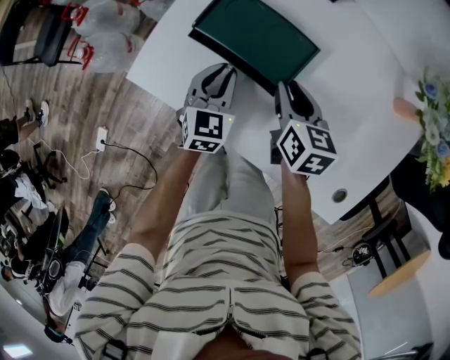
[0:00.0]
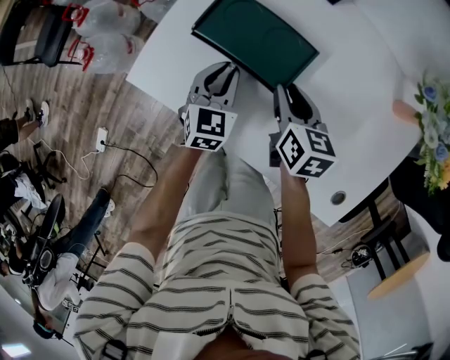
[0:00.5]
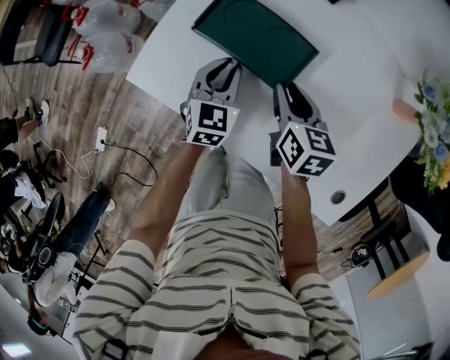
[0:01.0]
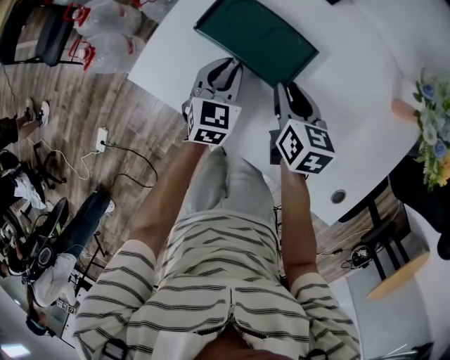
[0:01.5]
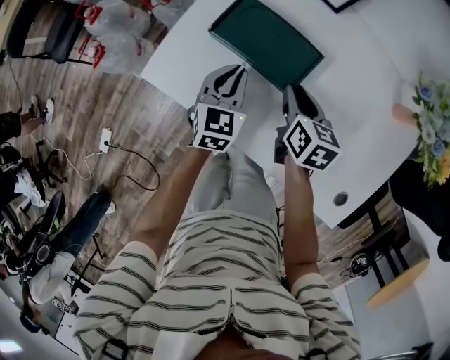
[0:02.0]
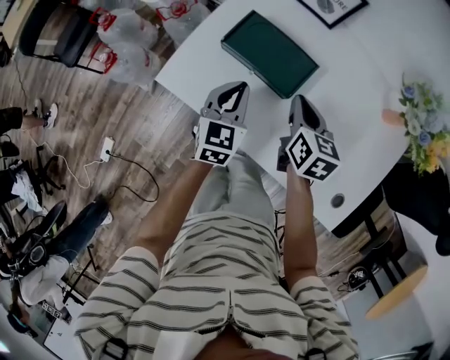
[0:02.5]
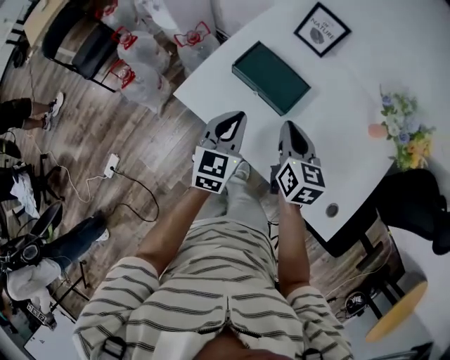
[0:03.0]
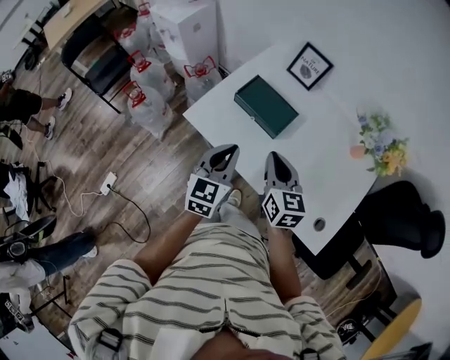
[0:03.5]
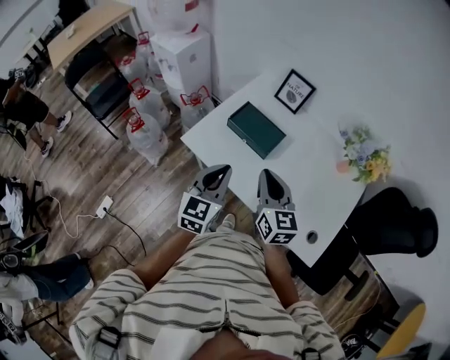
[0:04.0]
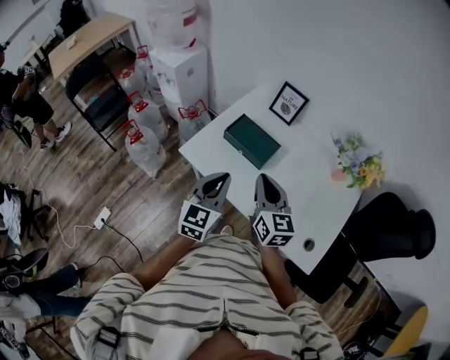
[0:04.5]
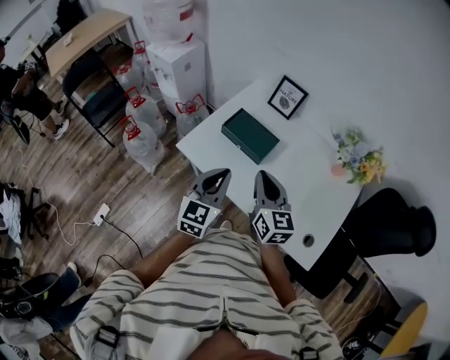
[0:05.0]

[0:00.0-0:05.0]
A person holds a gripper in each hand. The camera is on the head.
0:00.0 to 0:02.5: Both grippers travel together upward, some 5 cm. The right gripper closes.
0:02.5 to 0:05.0: Both grippers travel together upward and backward, roughly 25 cm. The right gripper swivels some 30 degrees.

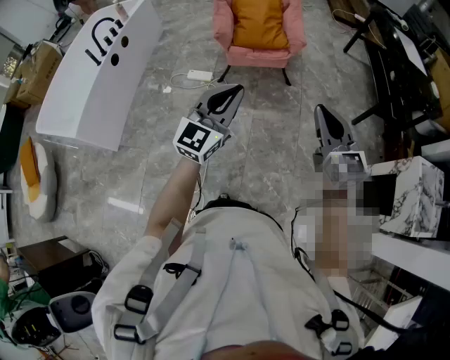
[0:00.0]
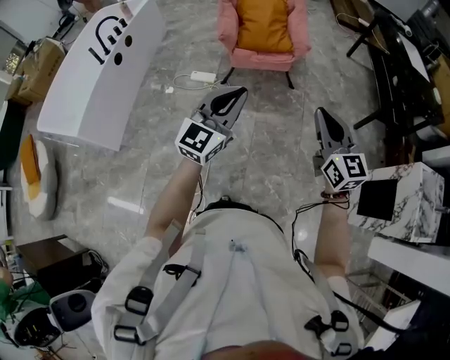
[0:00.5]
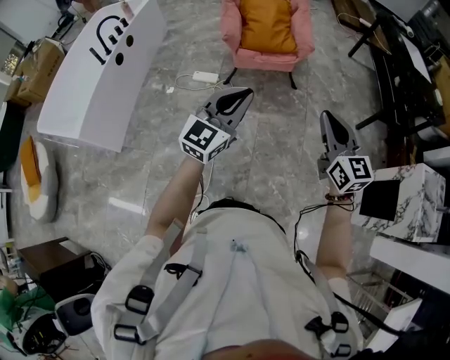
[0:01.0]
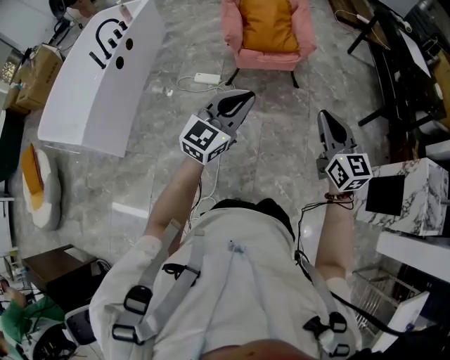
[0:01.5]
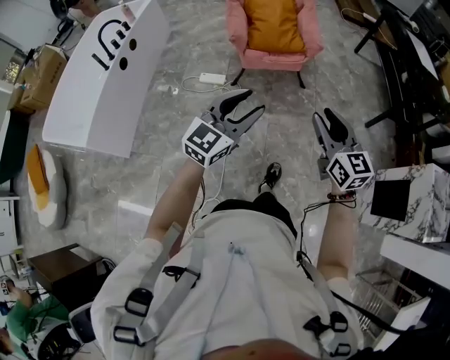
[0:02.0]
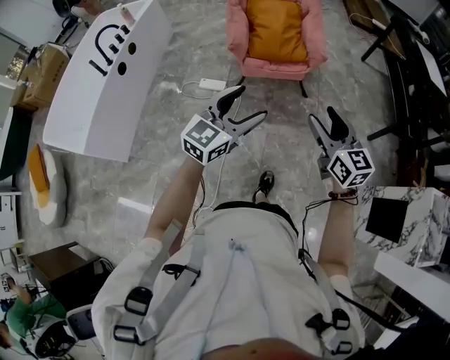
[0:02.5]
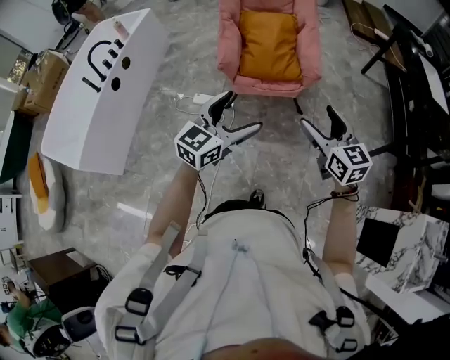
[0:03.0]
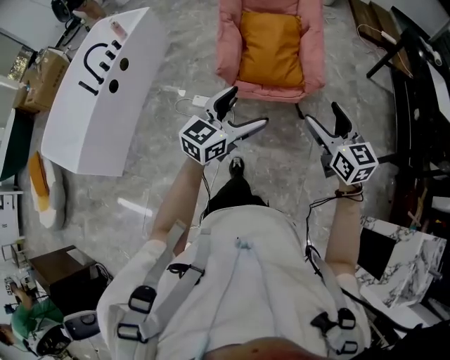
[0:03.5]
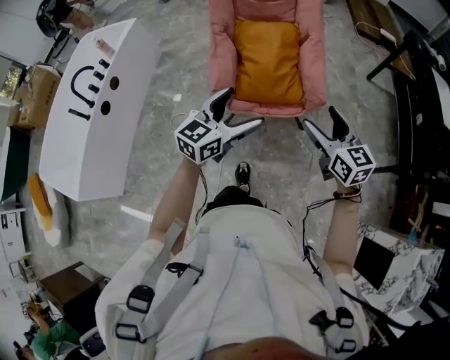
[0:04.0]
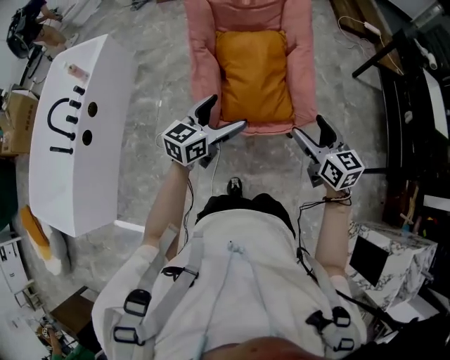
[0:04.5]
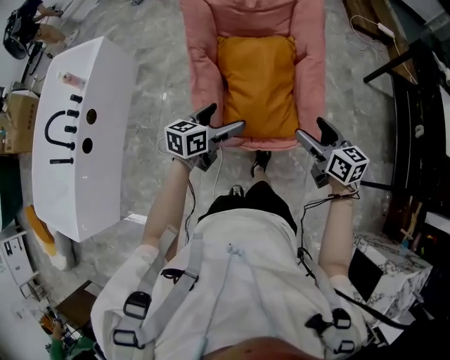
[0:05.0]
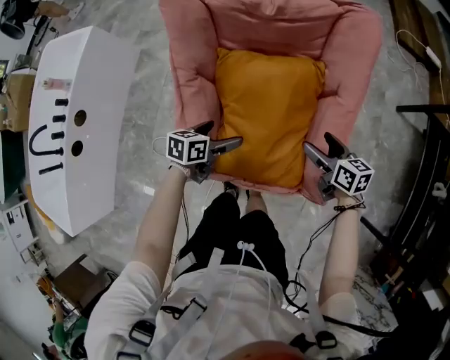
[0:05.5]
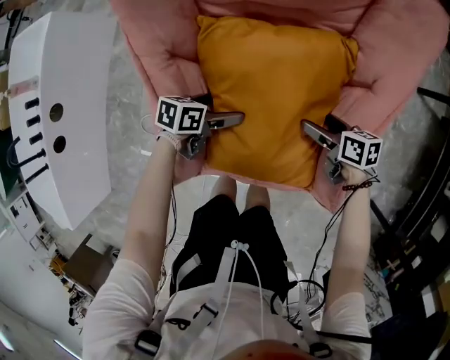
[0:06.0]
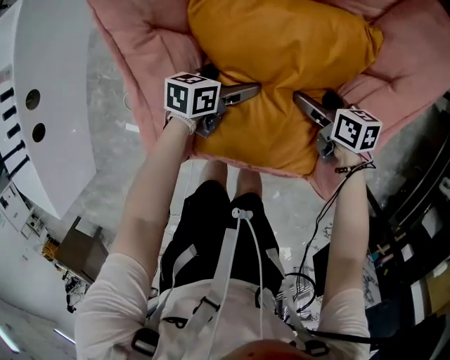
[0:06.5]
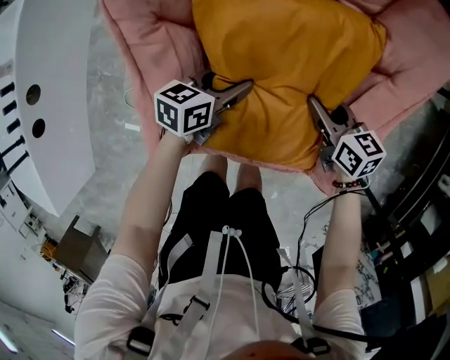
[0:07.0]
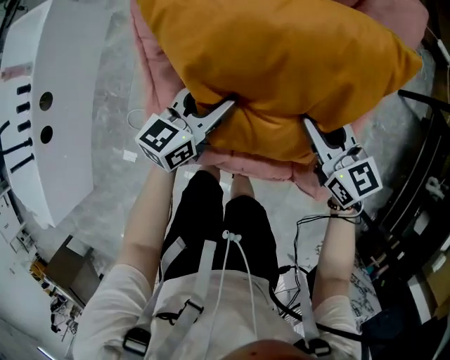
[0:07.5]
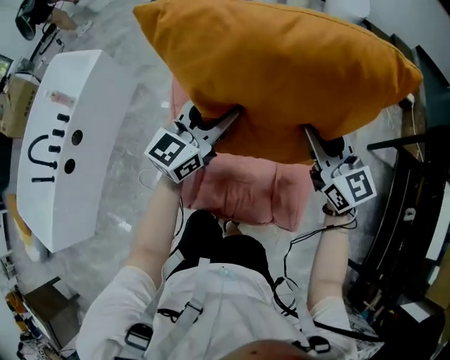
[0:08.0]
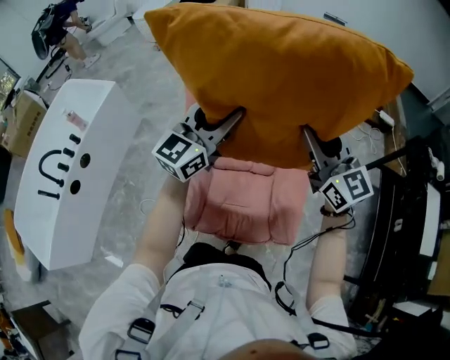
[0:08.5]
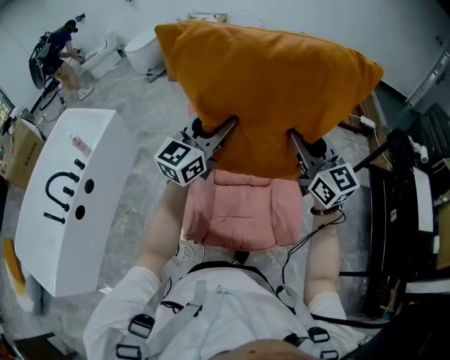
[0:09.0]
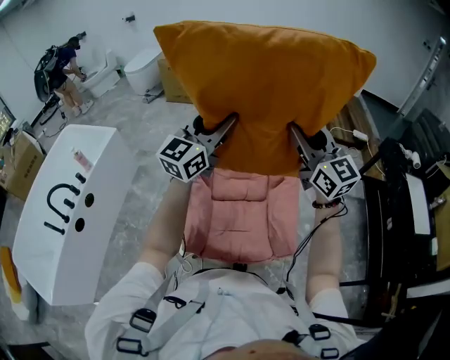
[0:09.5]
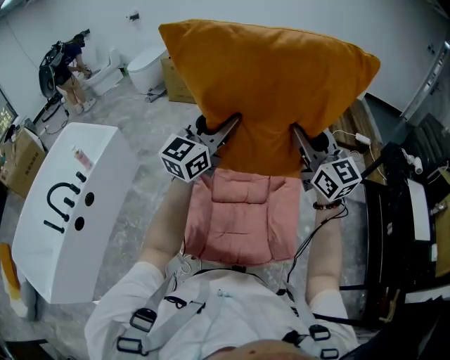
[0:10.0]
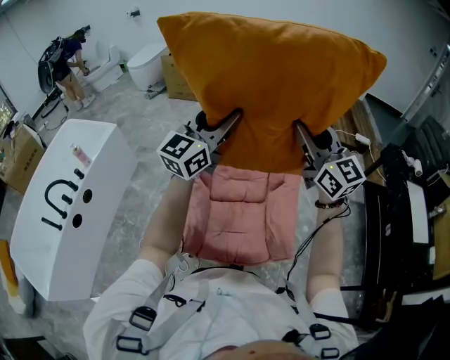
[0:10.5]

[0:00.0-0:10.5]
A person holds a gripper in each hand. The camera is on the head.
0:00.0 to 0:02.0: The grippers both shift to the left by roughly 5 cm.
0:02.0 to 0:04.0: The pair of grippers is taken forward, about 50 cm. The right gripper opens, while the left gripper opens.
0:04.0 to 0:06.5: The pair of grippers is taken some 60 cm. The left gripper tips its fingers downward by approximately 30 degrees; the right gripper turns by about 50 degrees.
0:06.5 to 0:08.5: Both grippers travel together upward, approximately 60 cm. The left gripper tilts its fingers approximately 50 degrees upward, and closes up. Meanwhile the right gripper tilts its fingers approximately 50 degrees upward, and closes its fingers.
0:08.5 to 0:10.5: Both grippers move upward and backward, approximately 15 cm.

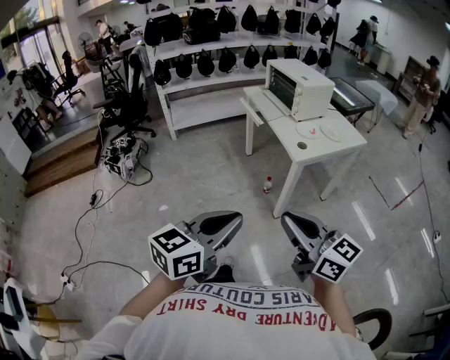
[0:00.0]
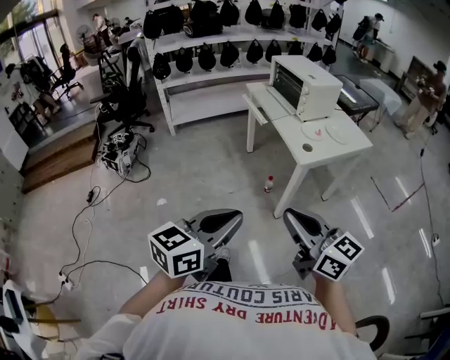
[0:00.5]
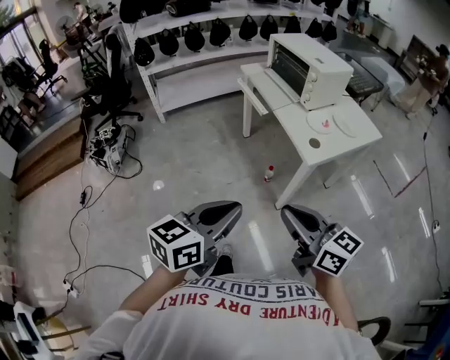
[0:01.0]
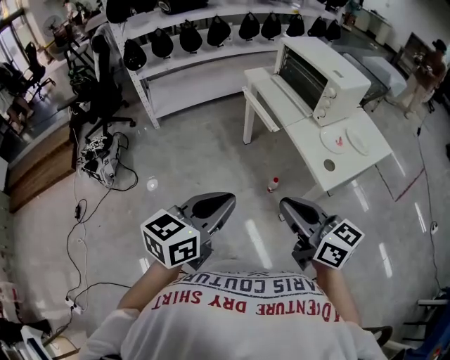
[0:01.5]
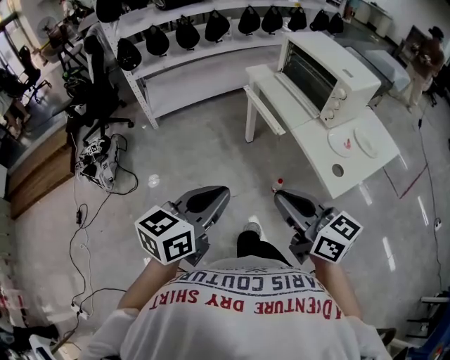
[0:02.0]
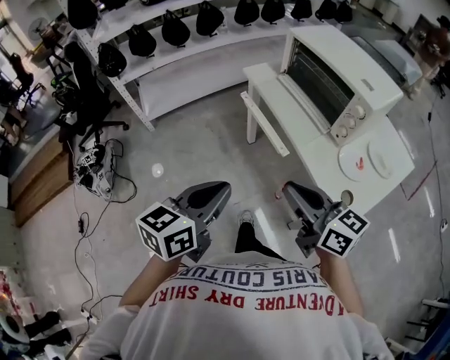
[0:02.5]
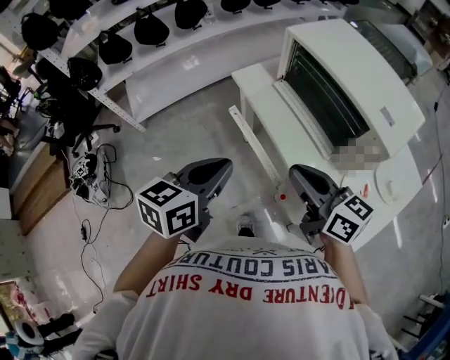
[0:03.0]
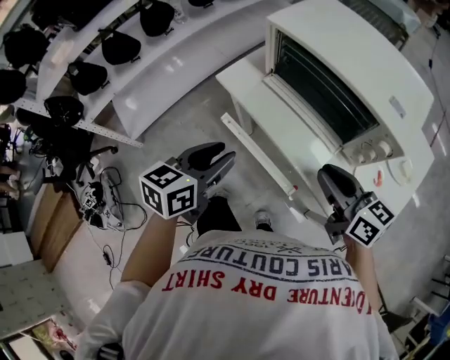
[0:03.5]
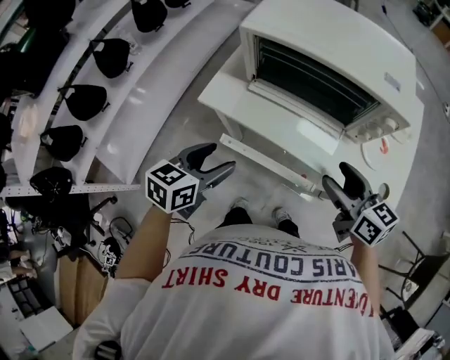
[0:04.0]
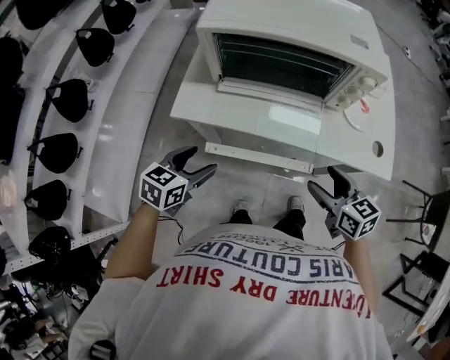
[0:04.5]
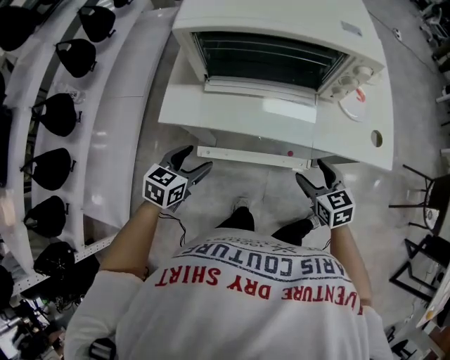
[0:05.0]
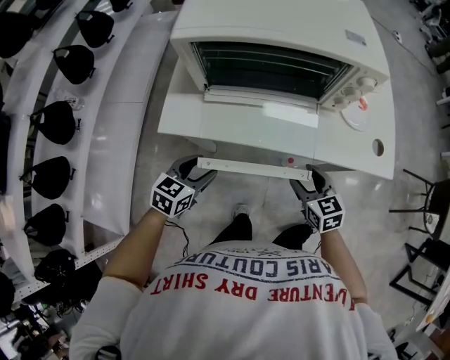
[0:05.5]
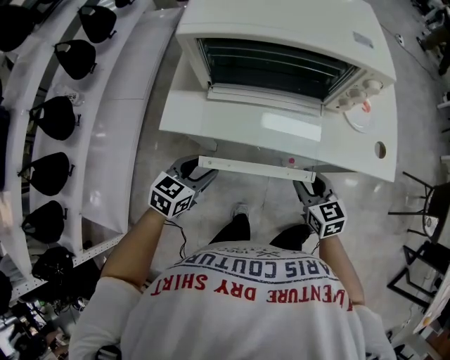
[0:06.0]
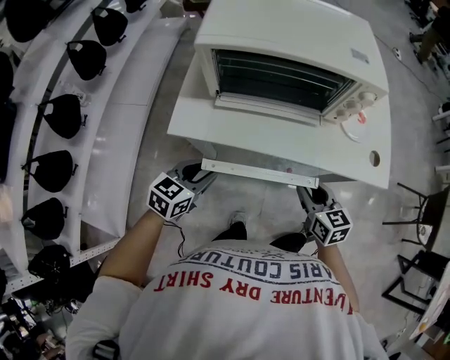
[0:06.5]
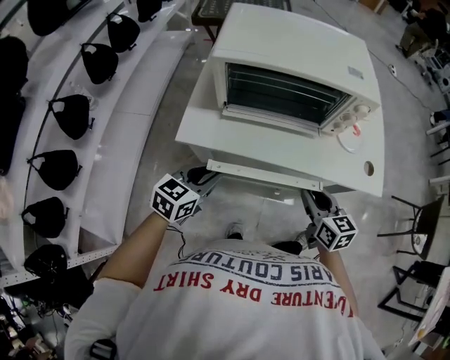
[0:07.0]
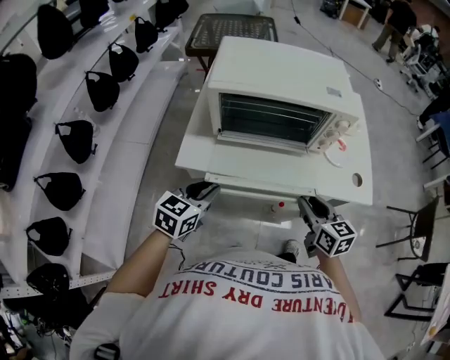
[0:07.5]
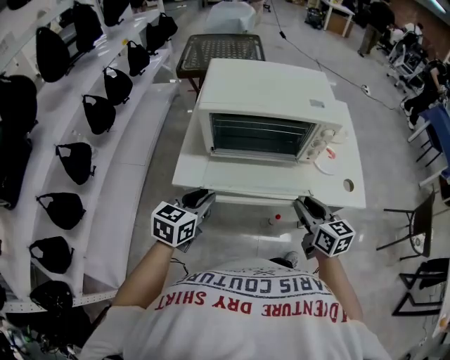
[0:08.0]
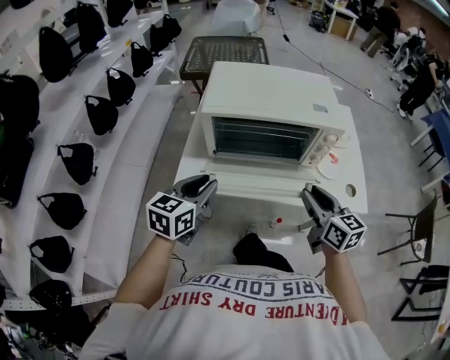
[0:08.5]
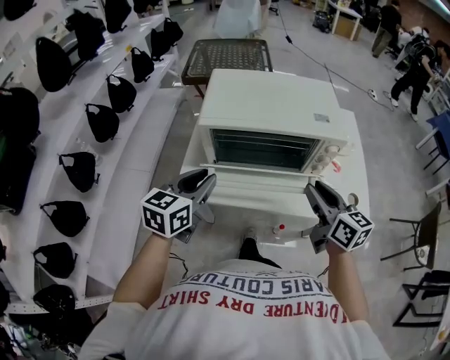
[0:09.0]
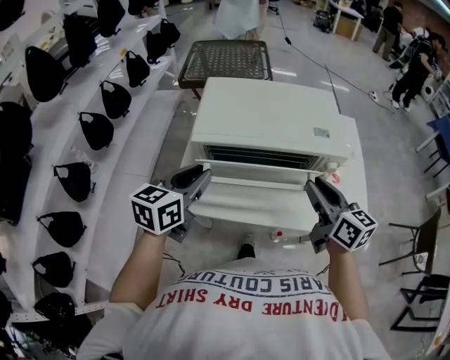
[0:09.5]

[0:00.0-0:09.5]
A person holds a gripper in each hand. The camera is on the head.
0:00.0 to 0:02.0: The pair of grippers is taken forward, some 40 cm.
0:02.0 to 0:04.0: The left gripper shifts by approximately 50 cm, swivels about 50 degrees, and opens up, while the right gripper changes place by approximately 40 cm, changes its angle by some 50 degrees, and opens up.
0:04.0 to 0:05.5: The grippers both shift downward by approximately 15 cm. The left gripper swivels about 20 degrees. Meanwhile the right gripper swivels about 30 degrees.
0:05.5 to 0:07.5: Both grippers move upward, roughly 15 cm. The left gripper closes; the right gripper closes.
0:07.5 to 0:09.5: The two grippers go approximately 20 cm upward and forward.

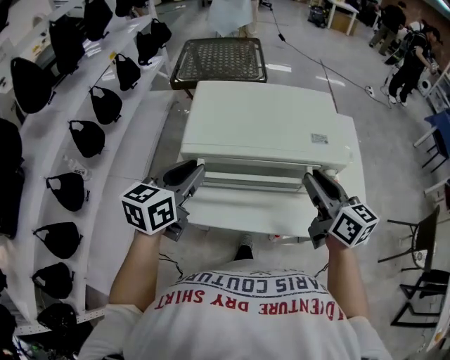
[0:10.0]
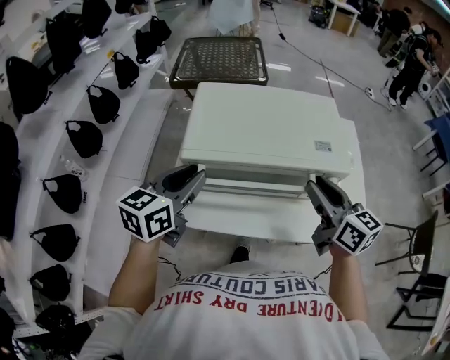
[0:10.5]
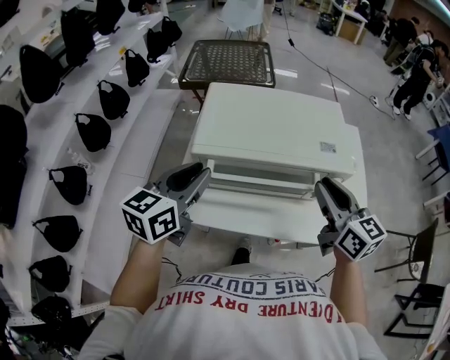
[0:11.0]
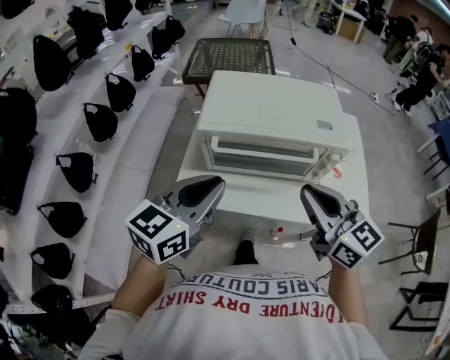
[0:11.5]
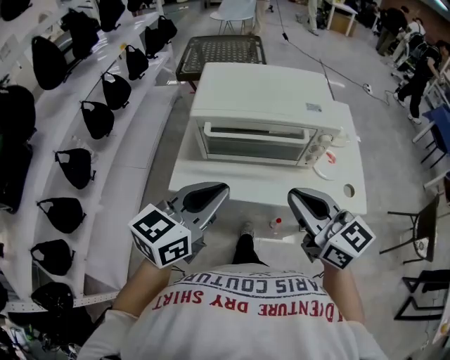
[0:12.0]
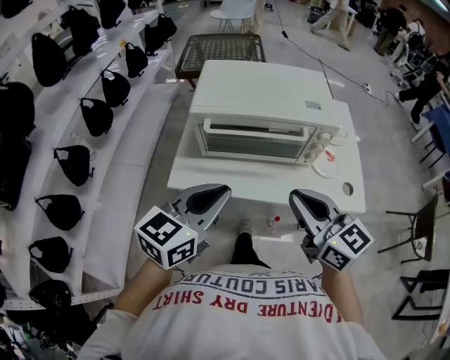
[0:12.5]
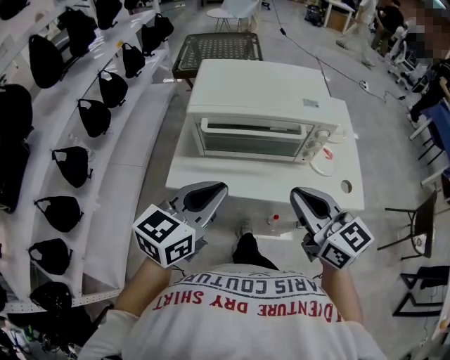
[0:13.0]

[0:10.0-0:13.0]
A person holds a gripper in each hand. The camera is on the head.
0:10.0 to 0:11.5: The left gripper shifts roughly 10 cm backward. Meanwhile the right gripper shifts approximately 10 cm backward and to the left, and changes its angle by some 20 degrees.
0:11.5 to 0:13.0: Both grippers move backward, roughly 5 cm.
